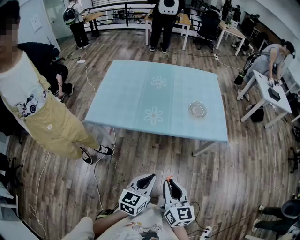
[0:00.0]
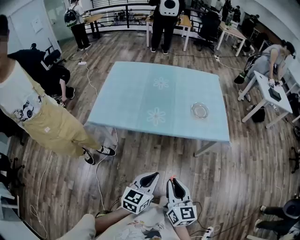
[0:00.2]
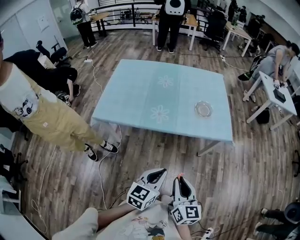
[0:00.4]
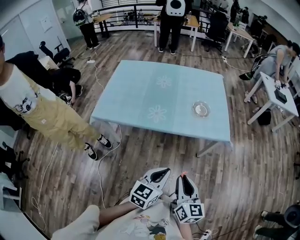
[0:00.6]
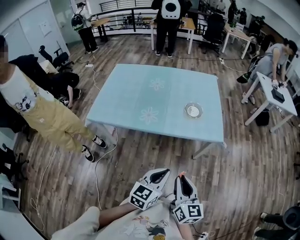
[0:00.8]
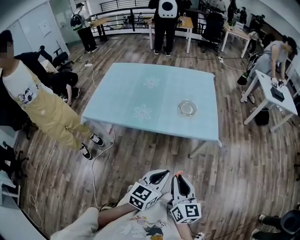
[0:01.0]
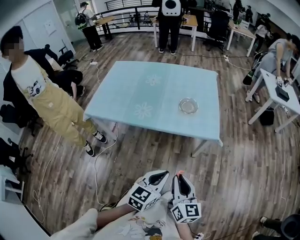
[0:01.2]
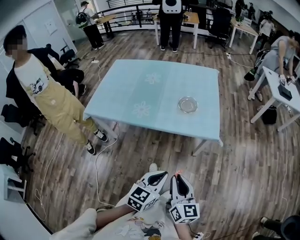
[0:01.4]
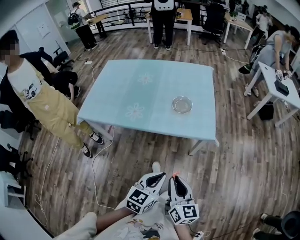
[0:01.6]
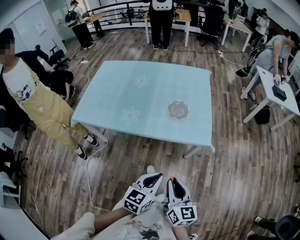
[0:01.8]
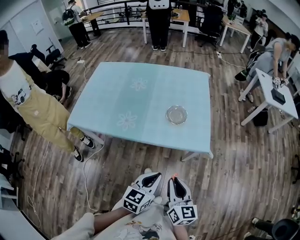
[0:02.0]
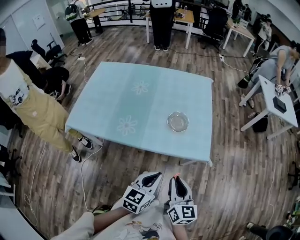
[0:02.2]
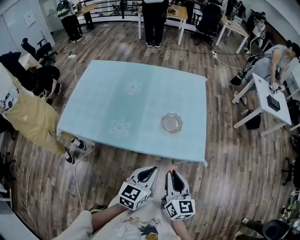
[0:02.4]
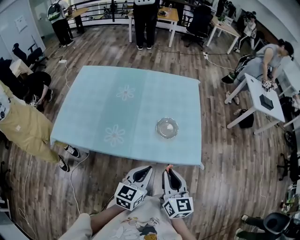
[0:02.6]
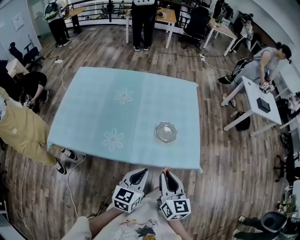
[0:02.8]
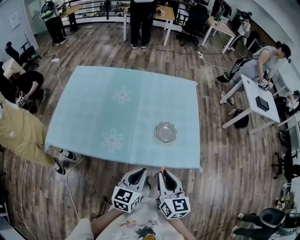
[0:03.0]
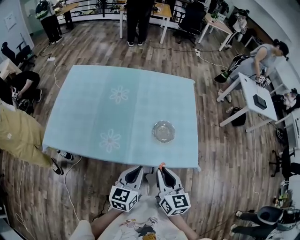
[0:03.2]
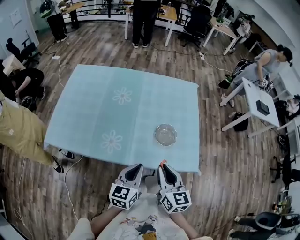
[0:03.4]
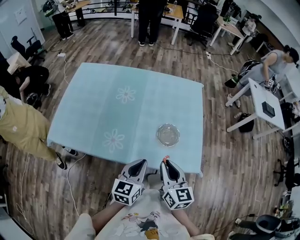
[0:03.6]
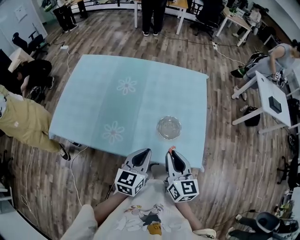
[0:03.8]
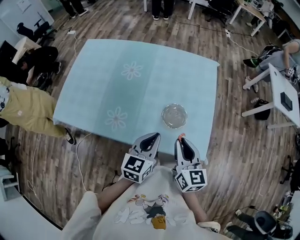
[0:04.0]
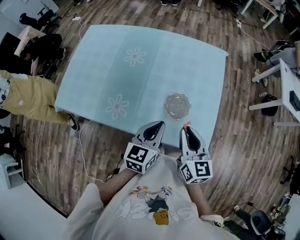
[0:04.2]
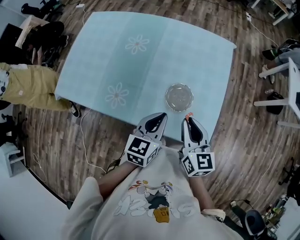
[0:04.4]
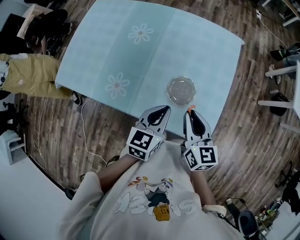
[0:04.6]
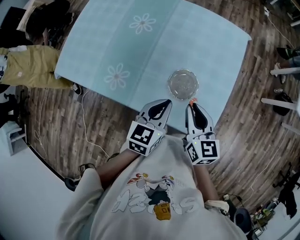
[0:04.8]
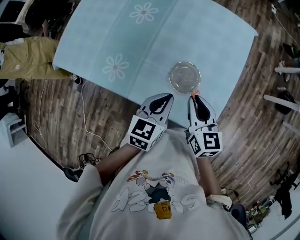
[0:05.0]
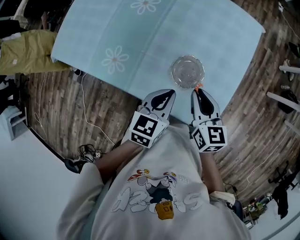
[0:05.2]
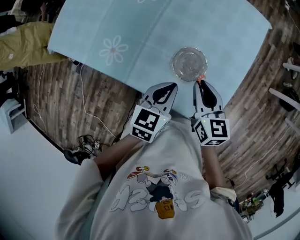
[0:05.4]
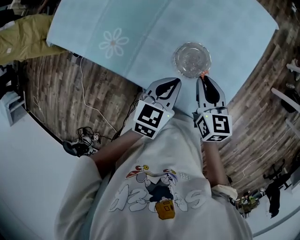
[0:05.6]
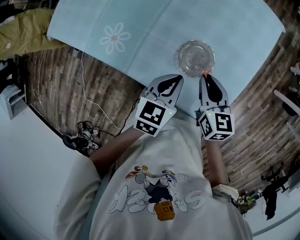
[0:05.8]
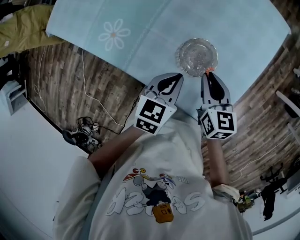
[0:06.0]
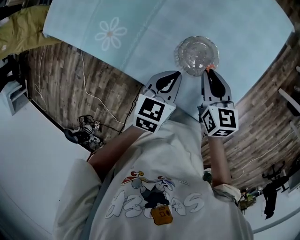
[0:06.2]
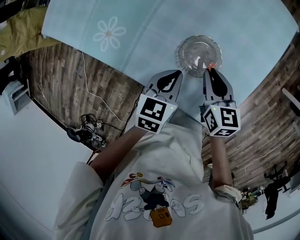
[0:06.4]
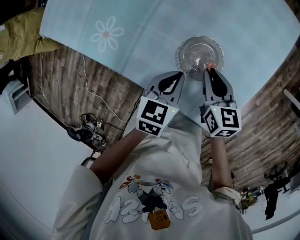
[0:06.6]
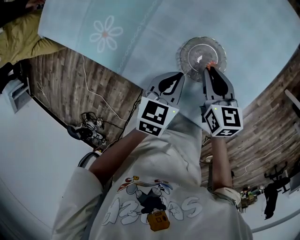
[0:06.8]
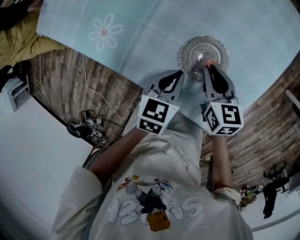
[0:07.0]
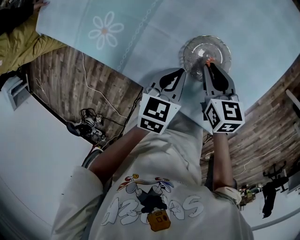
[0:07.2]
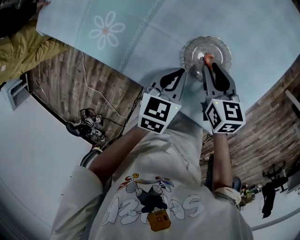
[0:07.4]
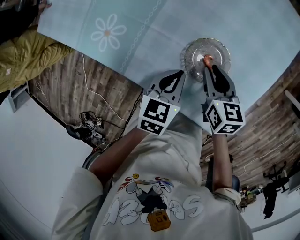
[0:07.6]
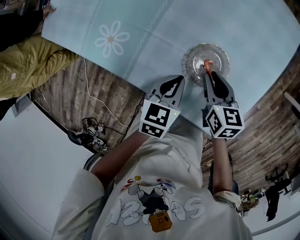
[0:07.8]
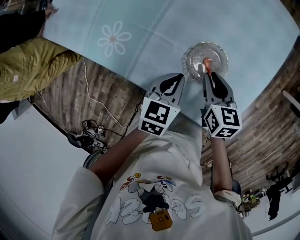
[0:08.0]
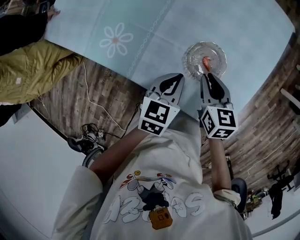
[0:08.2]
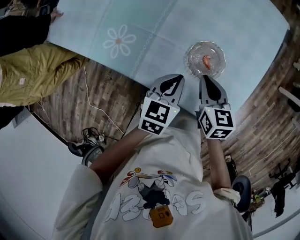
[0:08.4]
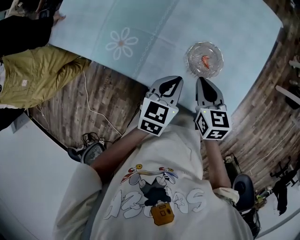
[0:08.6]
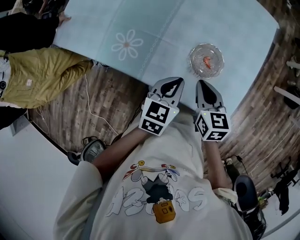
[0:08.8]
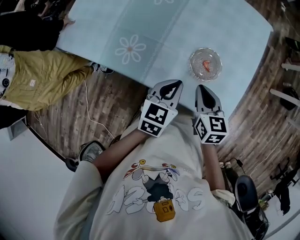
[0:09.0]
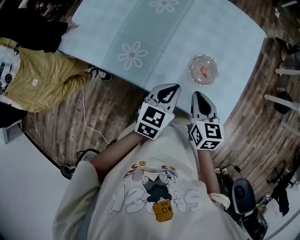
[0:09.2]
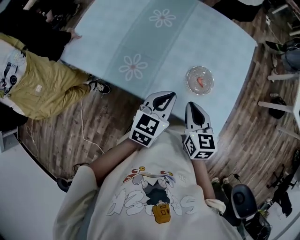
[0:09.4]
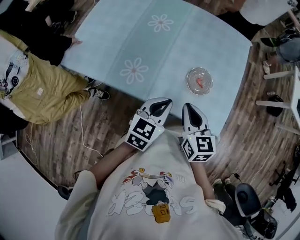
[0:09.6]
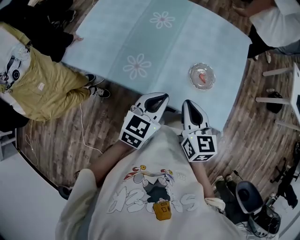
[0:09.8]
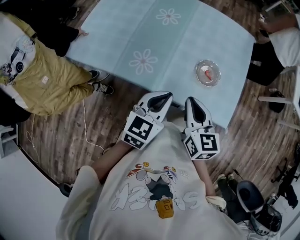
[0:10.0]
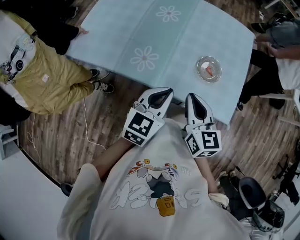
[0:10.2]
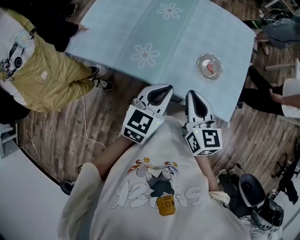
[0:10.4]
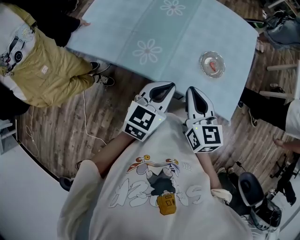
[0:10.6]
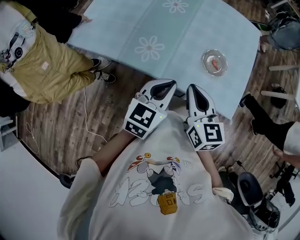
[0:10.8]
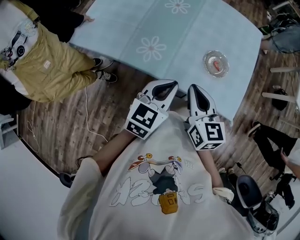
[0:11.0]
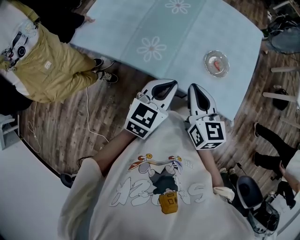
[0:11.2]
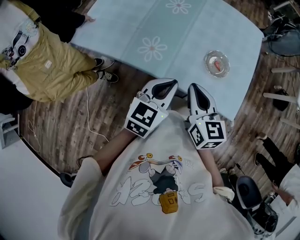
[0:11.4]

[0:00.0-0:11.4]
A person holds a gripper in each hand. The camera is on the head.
0:00.0 to 0:01.4: The two grippers go approximately 25 cm to the right.
0:01.4 to 0:02.8: Both grippers travel together forward, approximately 30 cm.
0:02.8 to 0:04.2: The right gripper is displaced forward and to the right by approximately 20 cm, while the left gripper goes about 15 cm forward.
0:04.2 to 0:05.6: The right gripper shifts approximately 20 cm downward and forward, and turns by approximately 20 degrees. The left gripper shifts some 15 cm downward and to the right.
0:05.6 to 0:07.2: The grippers both shift downward by roughly 15 cm.
0:07.2 to 0:08.6: The left gripper travels upward by roughly 10 cm. The right gripper is displaced upward and backward by roughly 10 cm.
0:08.6 to 0:10.0: The grippers both shift upward, to the left and backward by approximately 25 cm. The left gripper swivels about 20 degrees.
0:10.0 to 0:11.4: The grippers make only small movements.

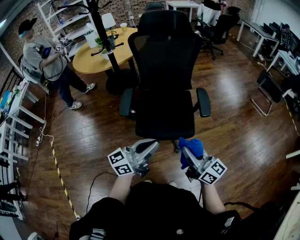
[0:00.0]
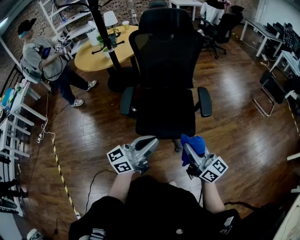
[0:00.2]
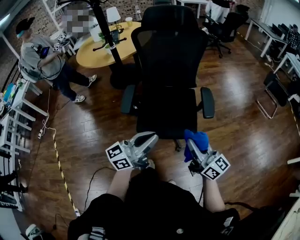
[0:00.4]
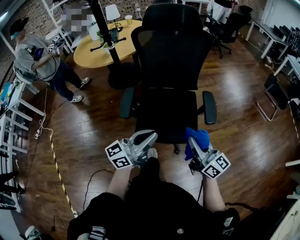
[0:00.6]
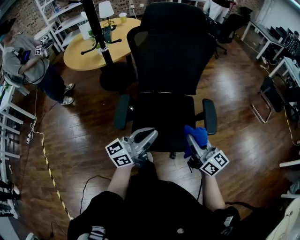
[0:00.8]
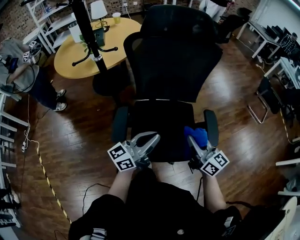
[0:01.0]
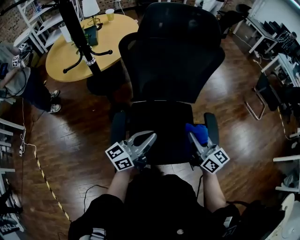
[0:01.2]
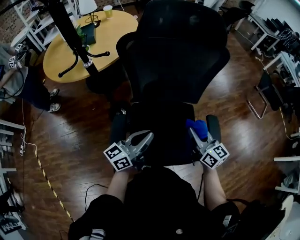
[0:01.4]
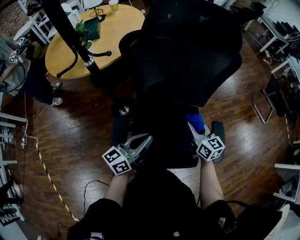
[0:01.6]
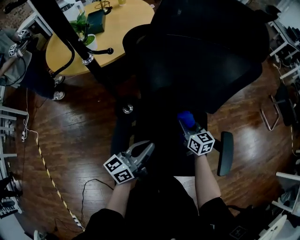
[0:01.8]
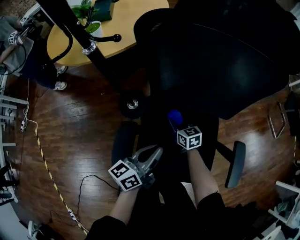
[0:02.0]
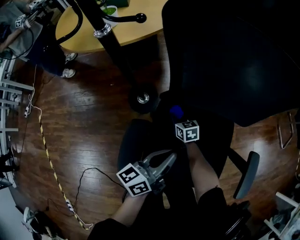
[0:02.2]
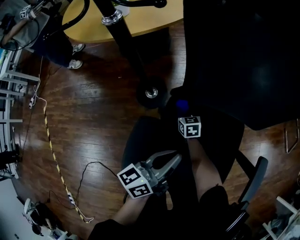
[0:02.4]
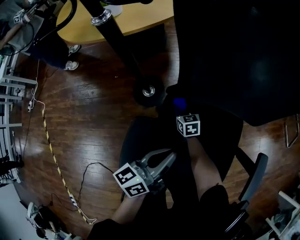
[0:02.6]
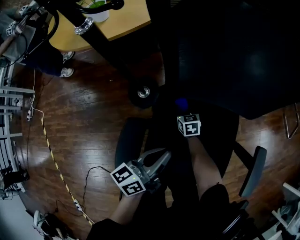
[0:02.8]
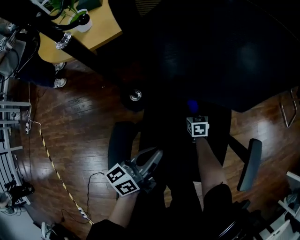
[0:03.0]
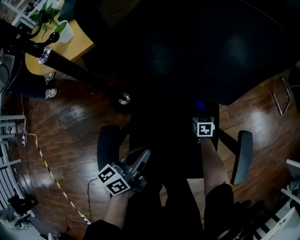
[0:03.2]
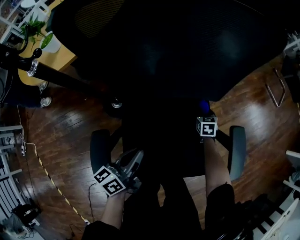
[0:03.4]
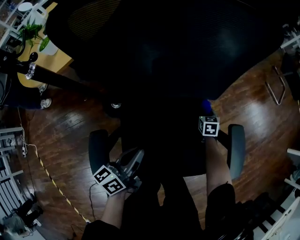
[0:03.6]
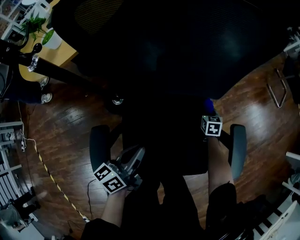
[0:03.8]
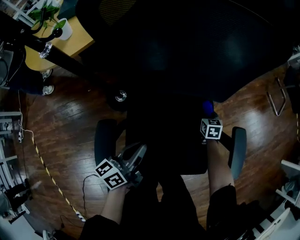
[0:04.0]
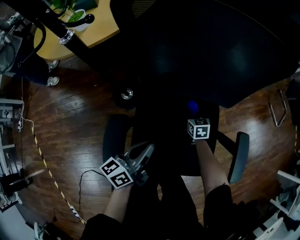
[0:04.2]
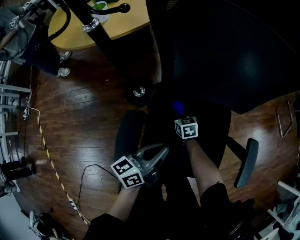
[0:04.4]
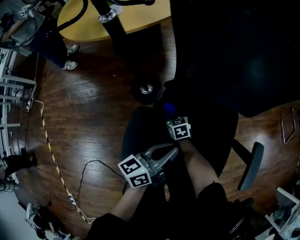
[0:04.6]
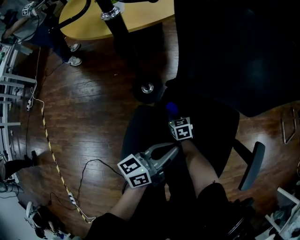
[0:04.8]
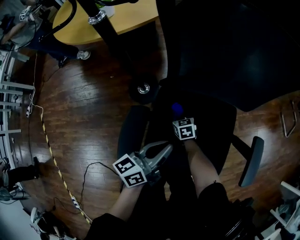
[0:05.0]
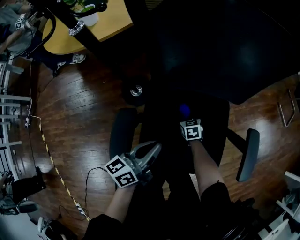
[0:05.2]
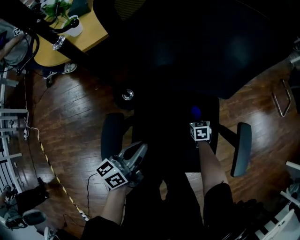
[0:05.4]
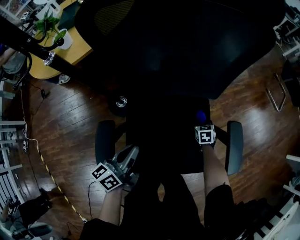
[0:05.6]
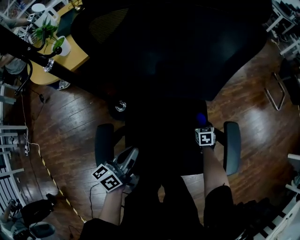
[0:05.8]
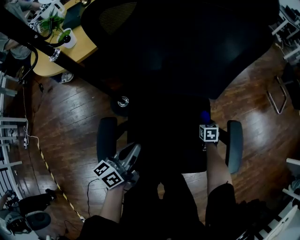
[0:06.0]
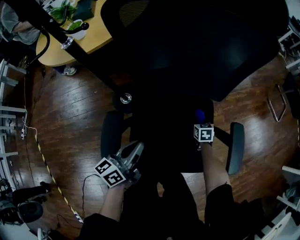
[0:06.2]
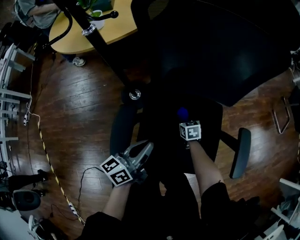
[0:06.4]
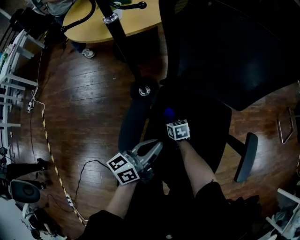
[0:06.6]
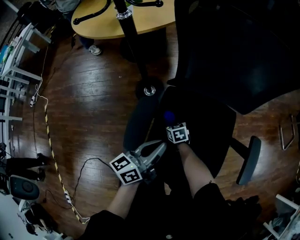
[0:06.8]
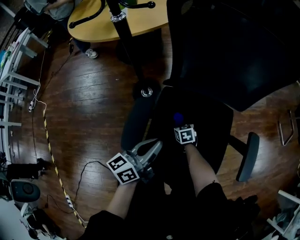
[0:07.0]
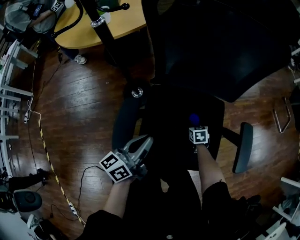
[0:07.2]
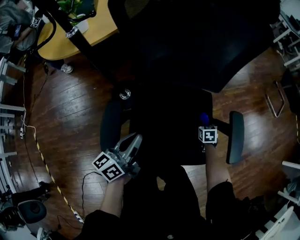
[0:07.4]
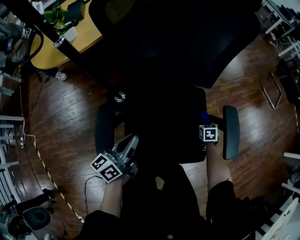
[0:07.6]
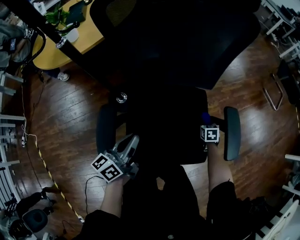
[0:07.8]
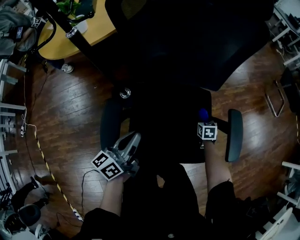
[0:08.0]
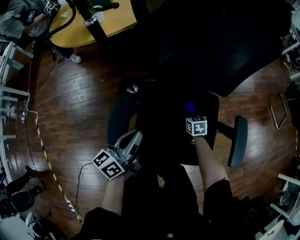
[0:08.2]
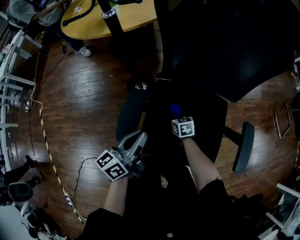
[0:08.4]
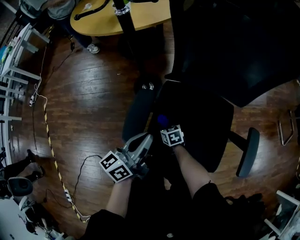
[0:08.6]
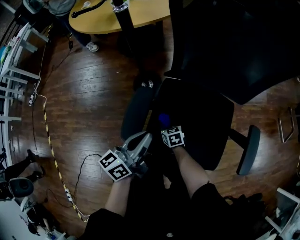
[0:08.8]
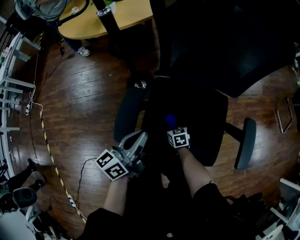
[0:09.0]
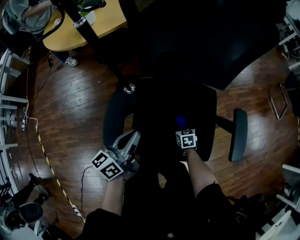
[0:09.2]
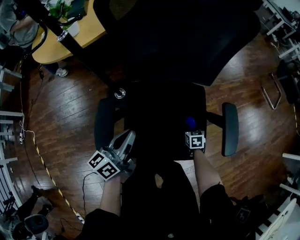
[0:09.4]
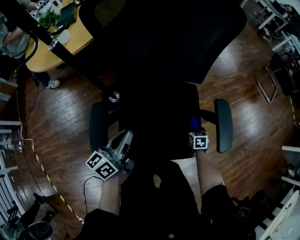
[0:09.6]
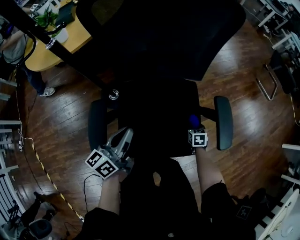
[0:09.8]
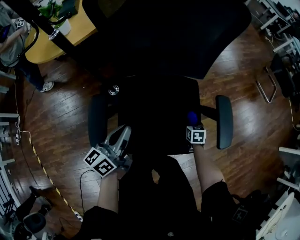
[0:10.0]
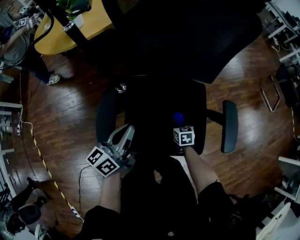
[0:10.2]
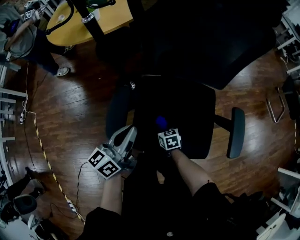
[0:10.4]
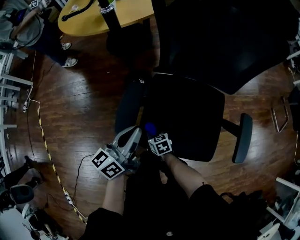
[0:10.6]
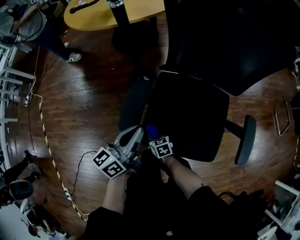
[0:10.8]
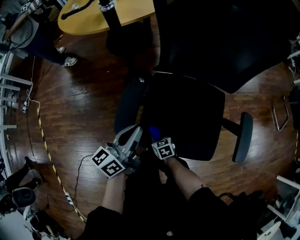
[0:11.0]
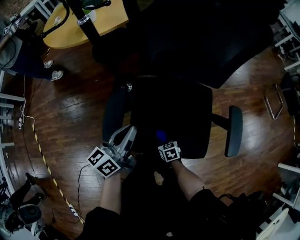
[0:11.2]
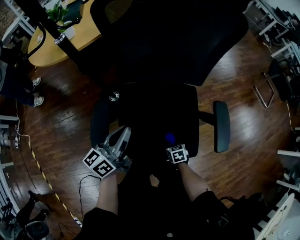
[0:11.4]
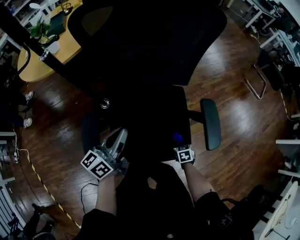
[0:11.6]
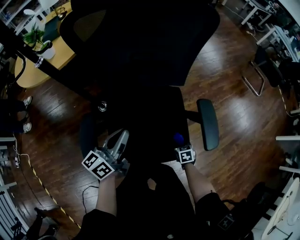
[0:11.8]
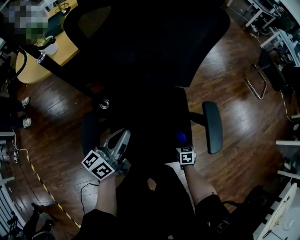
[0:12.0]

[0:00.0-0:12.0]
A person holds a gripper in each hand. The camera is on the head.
0:00.0 to 0:01.6: Both grippers travel together forward, about 35 cm. The right gripper changes its angle by approximately 30 degrees.
0:01.6 to 0:03.0: The left gripper goes approximately 15 cm downward, and rotates about 20 degrees, while the right gripper is displaced downward by approximately 35 cm, and tips its fingers downward by approximately 30 degrees.
0:03.0 to 0:04.4: The right gripper goes some 5 cm backward, and travels to the right and back again, approximately 20 cm each way.
0:04.4 to 0:06.0: The right gripper heads to the right, covering approximately 30 cm, and rotates some 30 degrees.
0:07.6 to 0:09.0: The left gripper ends up approximately 5 cm from where it was. Meanwhile the right gripper shifts by roughly 30 cm, and rotates some 30 degrees.
0:09.0 to 0:10.4: The right gripper goes to the right and returns, about 30 cm each way.
0:10.4 to 0:12.0: The right gripper changes place by approximately 25 cm, and changes its angle by roughly 30 degrees. Meanwhile the left gripper moves roughly 10 cm.
